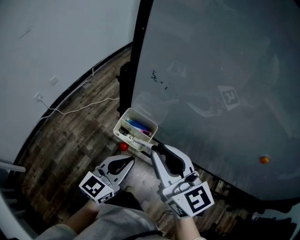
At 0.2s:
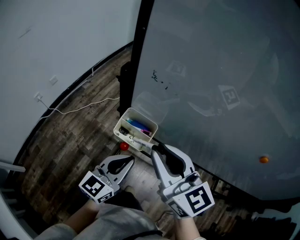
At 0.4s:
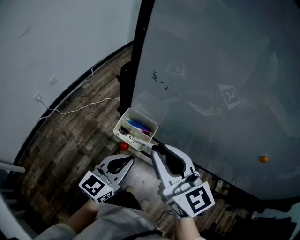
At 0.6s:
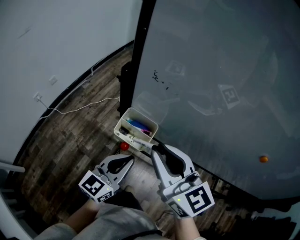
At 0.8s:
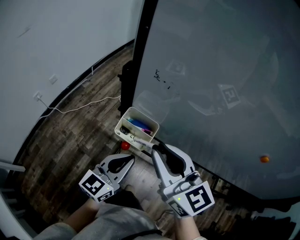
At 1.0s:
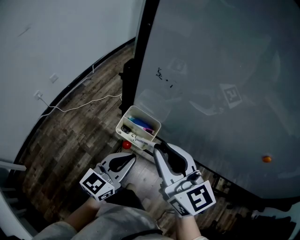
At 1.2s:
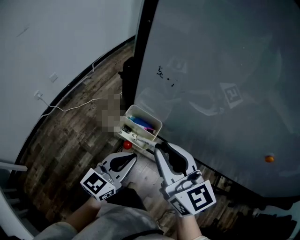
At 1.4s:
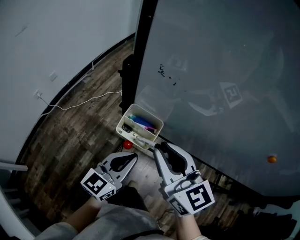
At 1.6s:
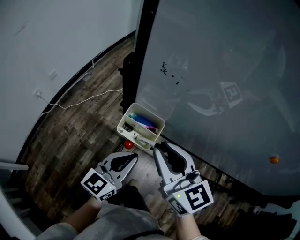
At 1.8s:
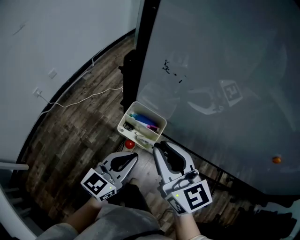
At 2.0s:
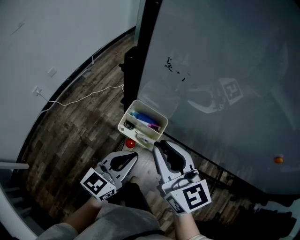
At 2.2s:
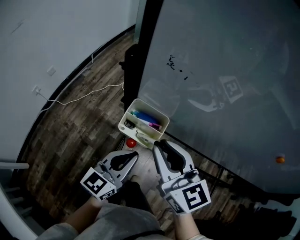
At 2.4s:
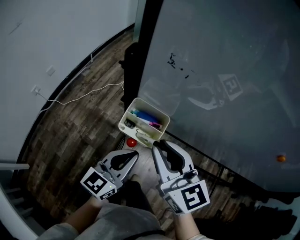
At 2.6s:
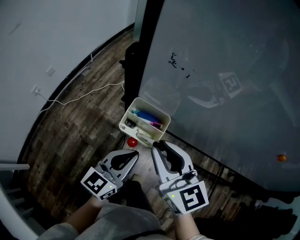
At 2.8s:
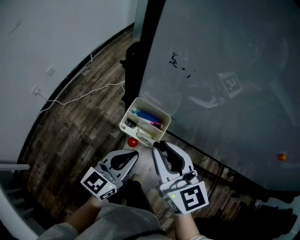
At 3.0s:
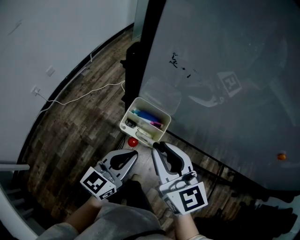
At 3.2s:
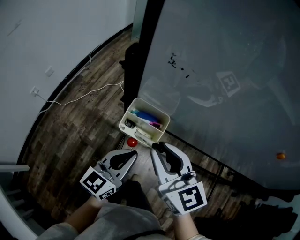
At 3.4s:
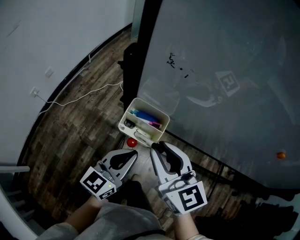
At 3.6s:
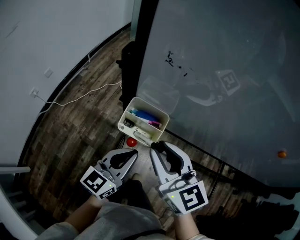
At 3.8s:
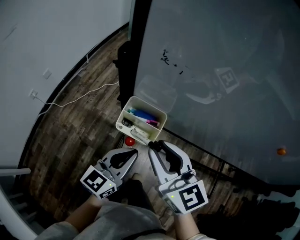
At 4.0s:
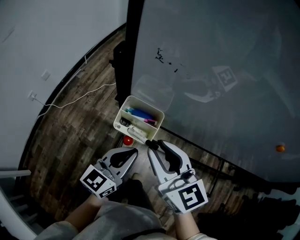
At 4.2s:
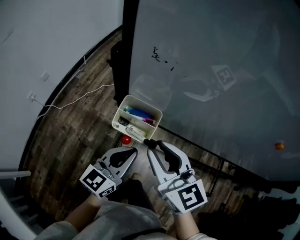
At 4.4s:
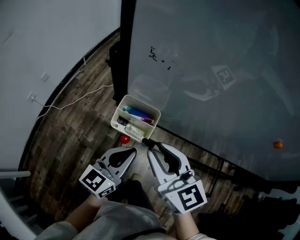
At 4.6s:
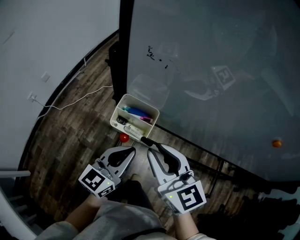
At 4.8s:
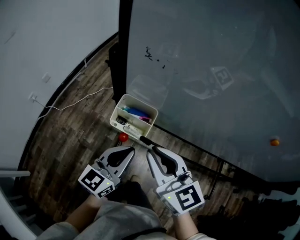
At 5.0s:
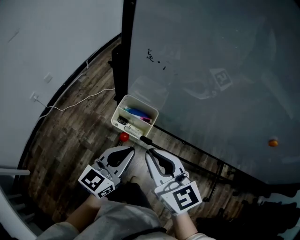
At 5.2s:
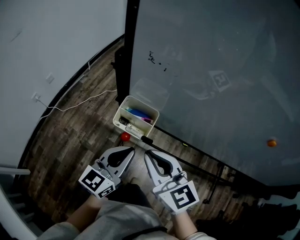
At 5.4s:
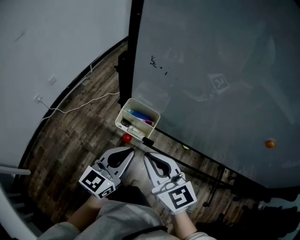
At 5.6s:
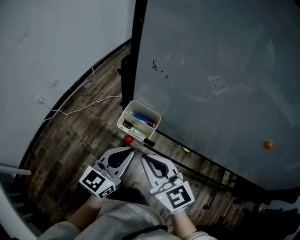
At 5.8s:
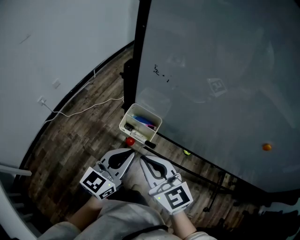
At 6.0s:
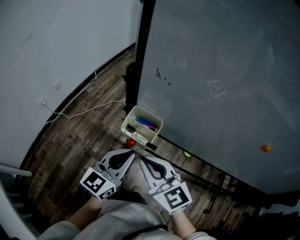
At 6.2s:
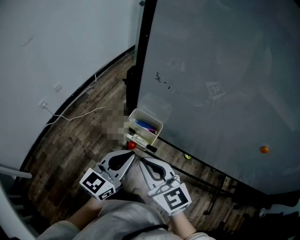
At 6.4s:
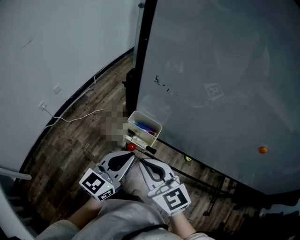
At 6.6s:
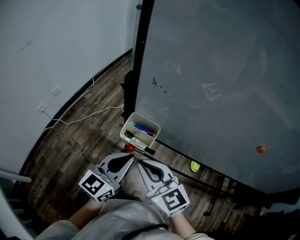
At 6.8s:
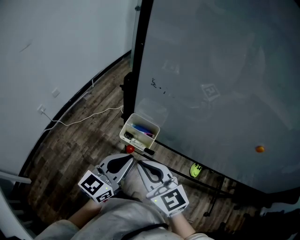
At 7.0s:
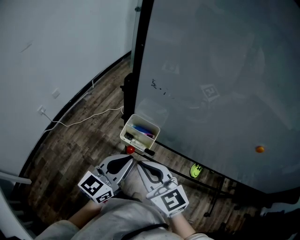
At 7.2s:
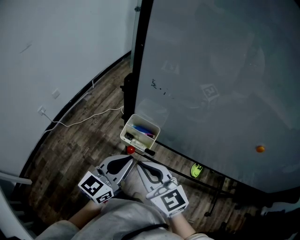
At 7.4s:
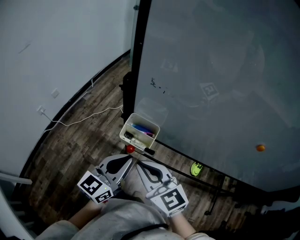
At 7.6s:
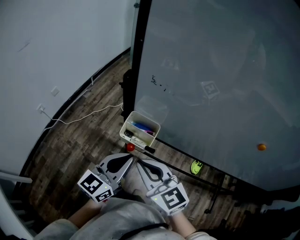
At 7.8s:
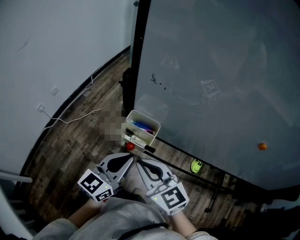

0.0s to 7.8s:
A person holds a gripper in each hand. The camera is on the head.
0.0s to 1.6s: The grippers stay close to where they were, moving slightly.
1.6s to 4.6s: The grippers move only a little.
4.6s to 6.2s: The right gripper ends up some 5 cm from where it was. The left gripper shifts about 5 cm upward.
6.2s to 7.8s: The grippers make only small movements.

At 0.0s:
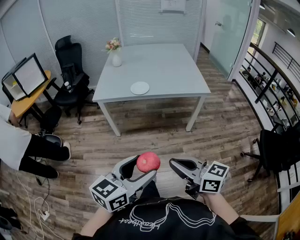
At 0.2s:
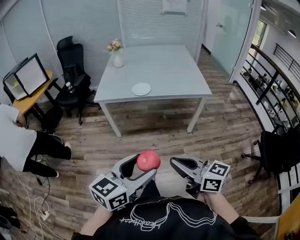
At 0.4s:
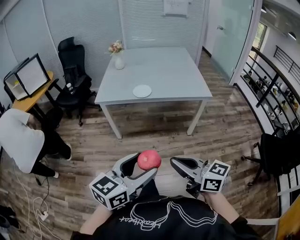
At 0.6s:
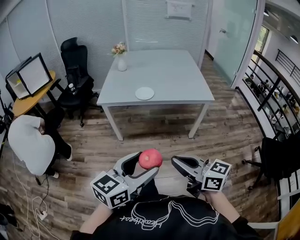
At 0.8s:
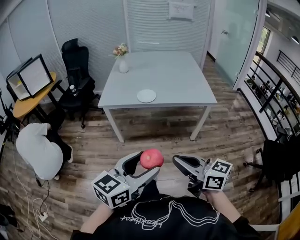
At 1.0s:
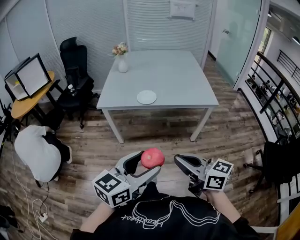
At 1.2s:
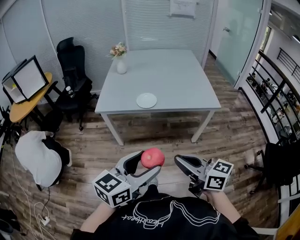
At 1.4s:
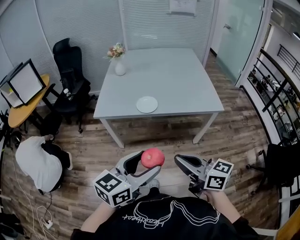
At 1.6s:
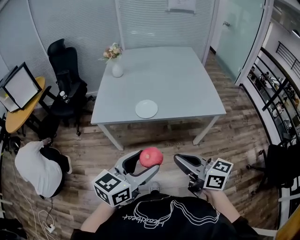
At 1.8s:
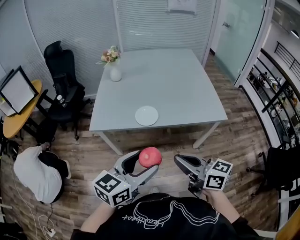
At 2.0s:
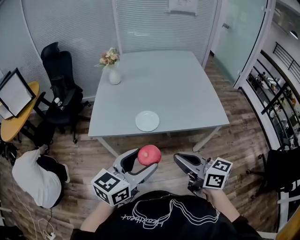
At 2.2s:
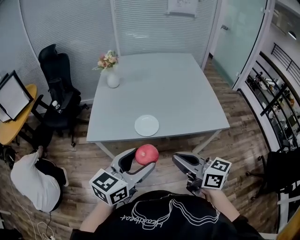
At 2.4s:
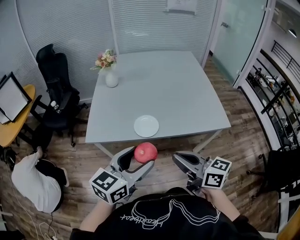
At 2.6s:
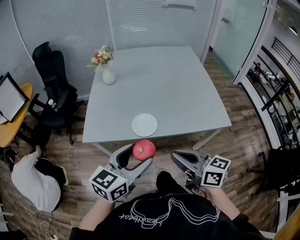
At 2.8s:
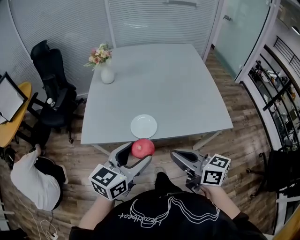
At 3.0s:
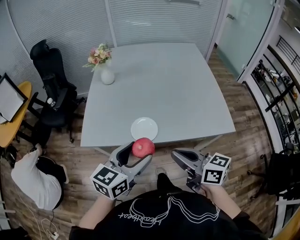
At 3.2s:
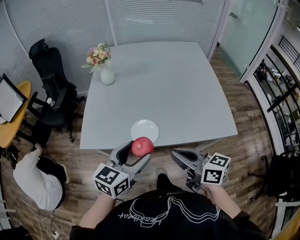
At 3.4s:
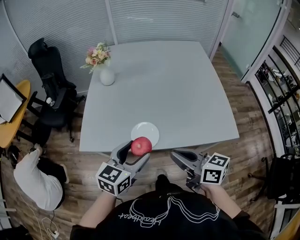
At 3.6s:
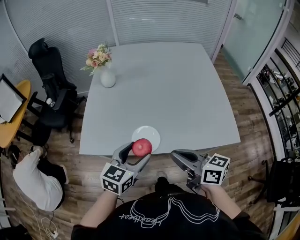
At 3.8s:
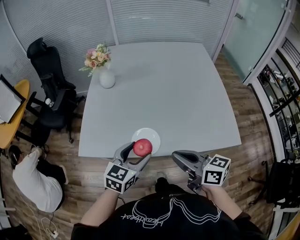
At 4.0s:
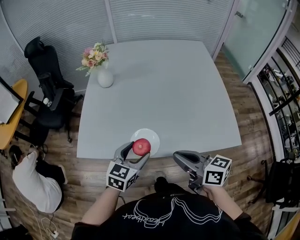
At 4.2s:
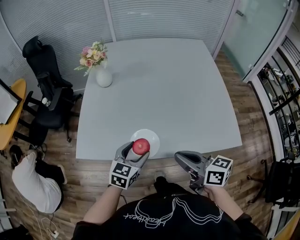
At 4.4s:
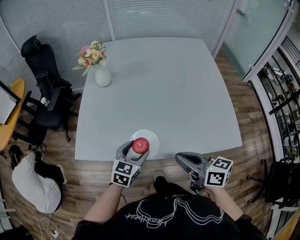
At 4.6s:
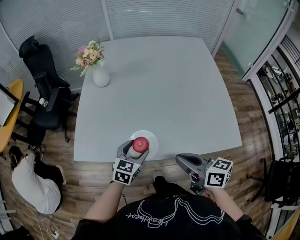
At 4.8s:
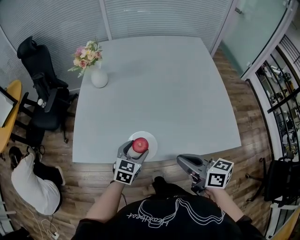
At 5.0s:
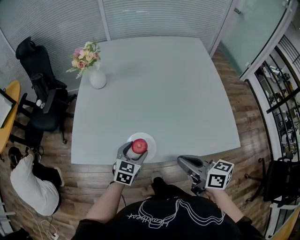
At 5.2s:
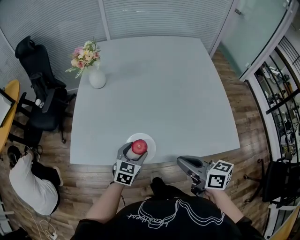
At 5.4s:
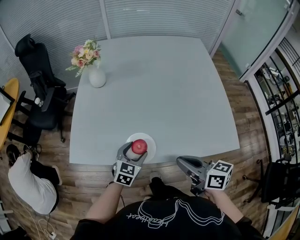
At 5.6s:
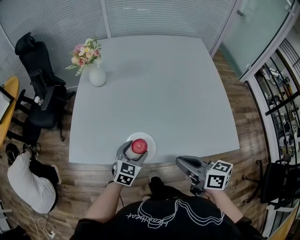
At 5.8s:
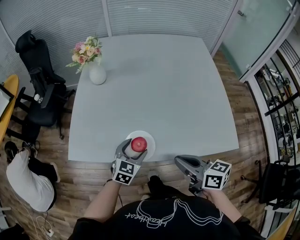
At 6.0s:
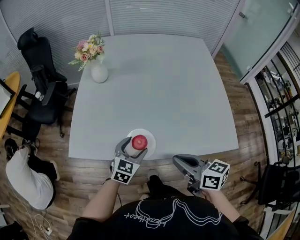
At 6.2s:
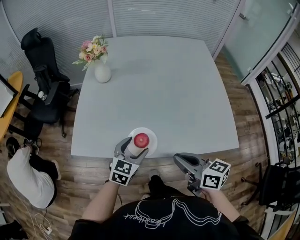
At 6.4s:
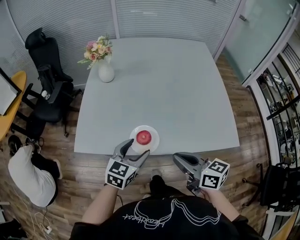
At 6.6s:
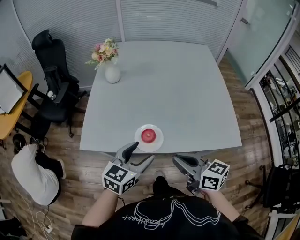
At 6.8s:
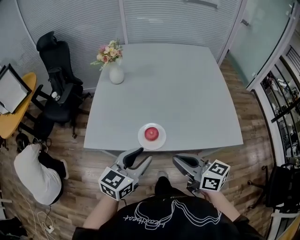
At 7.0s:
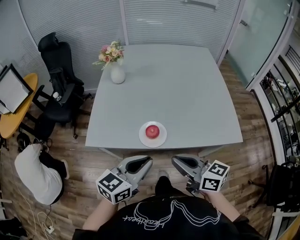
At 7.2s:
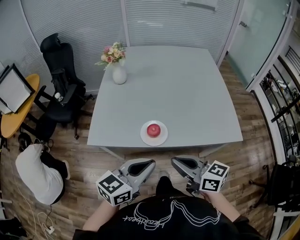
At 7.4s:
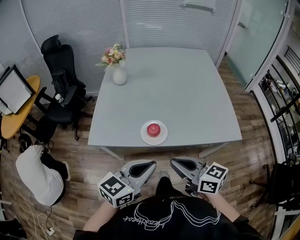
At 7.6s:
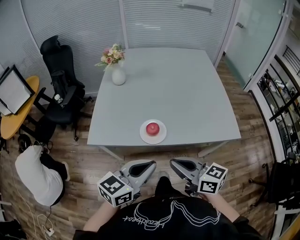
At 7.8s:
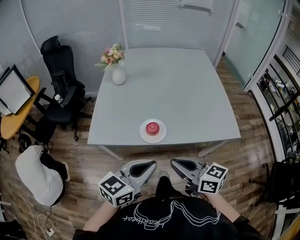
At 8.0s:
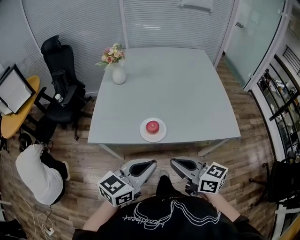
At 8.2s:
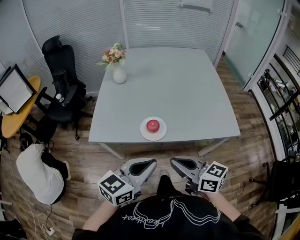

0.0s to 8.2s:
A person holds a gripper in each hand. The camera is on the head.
0.0s to 1.6s: The two grippers go roughly 25 cm forward.
1.6s to 3.2s: The grippers both shift forward by some 25 cm.
3.2s to 5.0s: The left gripper is displaced downward and forward by roughly 25 cm, and turns by about 20 degrees. The right gripper shifts roughly 10 cm forward, downward and to the right.
5.0s to 6.6s: The right gripper goes roughly 5 cm to the left. The left gripper is displaced upward and backward by some 15 cm.
6.6s to 8.2s: The left gripper heads backward and upward, covering roughly 15 cm, and closes up, while the right gripper goes about 10 cm backward.

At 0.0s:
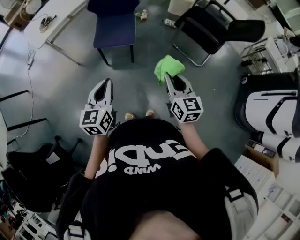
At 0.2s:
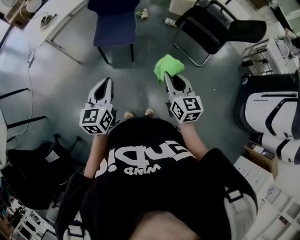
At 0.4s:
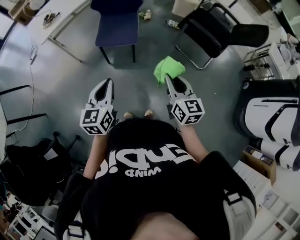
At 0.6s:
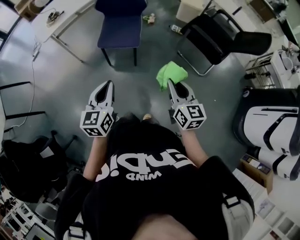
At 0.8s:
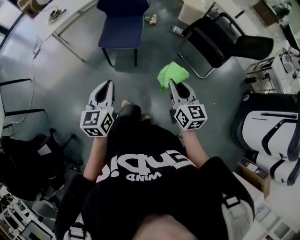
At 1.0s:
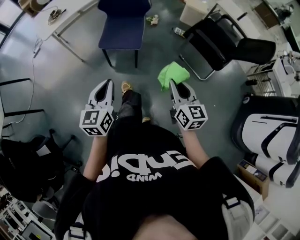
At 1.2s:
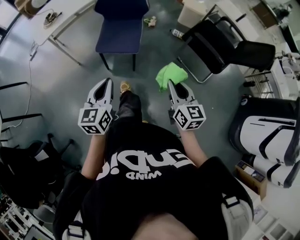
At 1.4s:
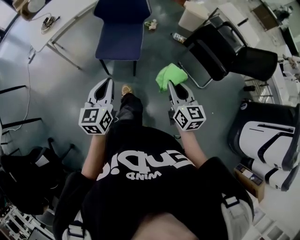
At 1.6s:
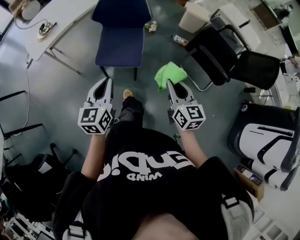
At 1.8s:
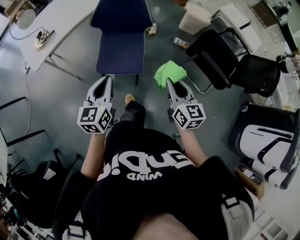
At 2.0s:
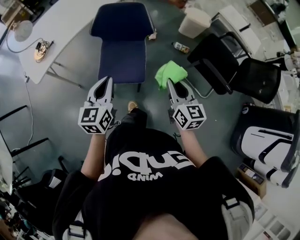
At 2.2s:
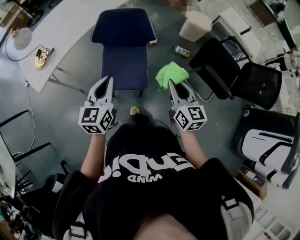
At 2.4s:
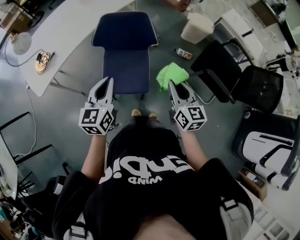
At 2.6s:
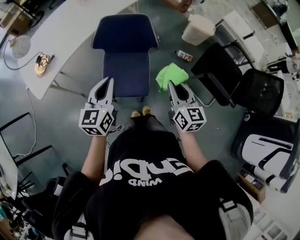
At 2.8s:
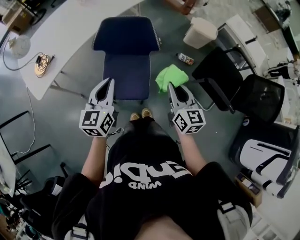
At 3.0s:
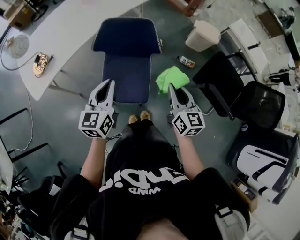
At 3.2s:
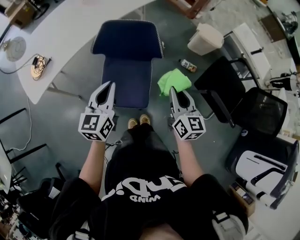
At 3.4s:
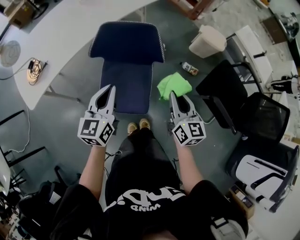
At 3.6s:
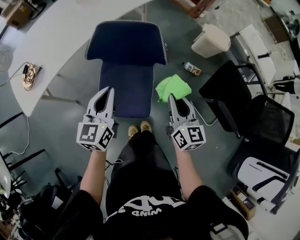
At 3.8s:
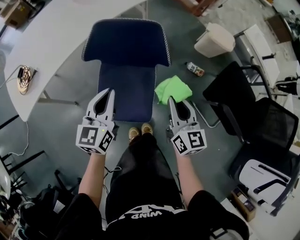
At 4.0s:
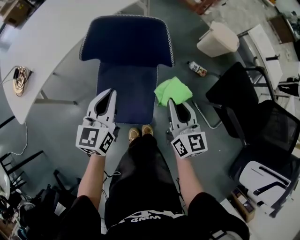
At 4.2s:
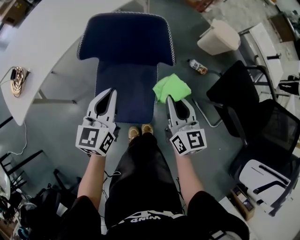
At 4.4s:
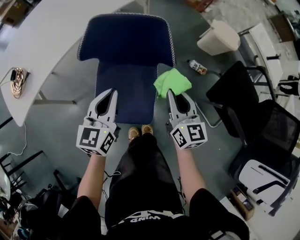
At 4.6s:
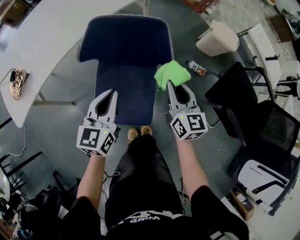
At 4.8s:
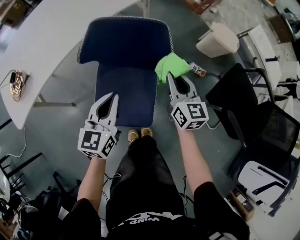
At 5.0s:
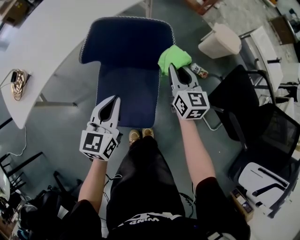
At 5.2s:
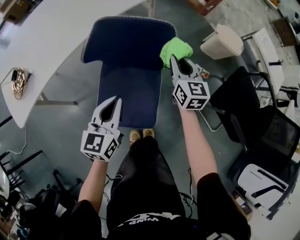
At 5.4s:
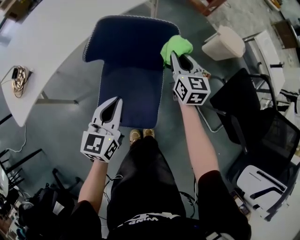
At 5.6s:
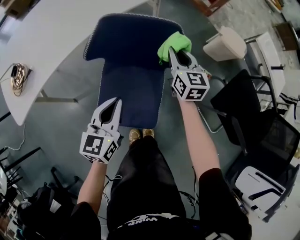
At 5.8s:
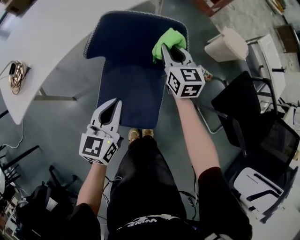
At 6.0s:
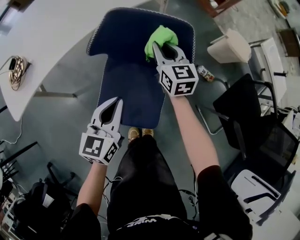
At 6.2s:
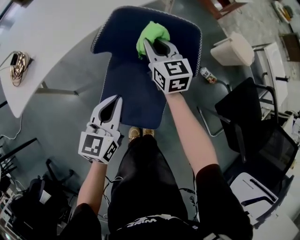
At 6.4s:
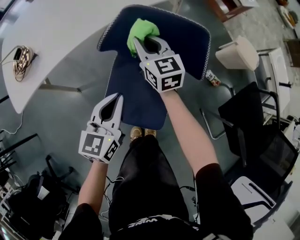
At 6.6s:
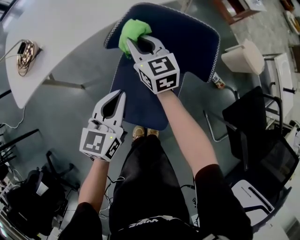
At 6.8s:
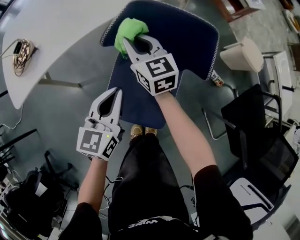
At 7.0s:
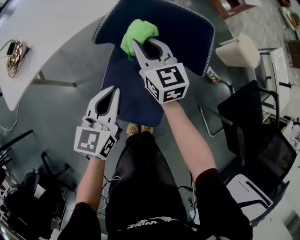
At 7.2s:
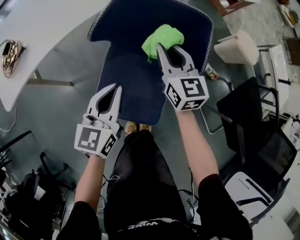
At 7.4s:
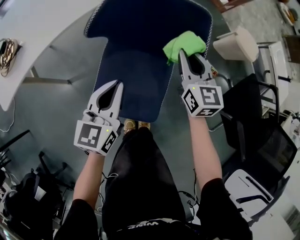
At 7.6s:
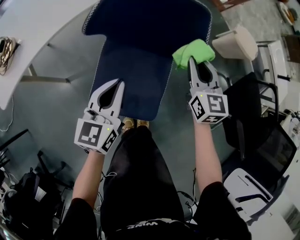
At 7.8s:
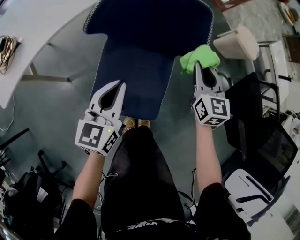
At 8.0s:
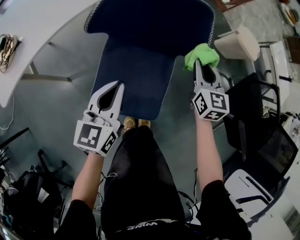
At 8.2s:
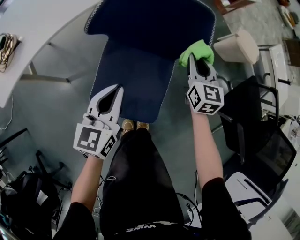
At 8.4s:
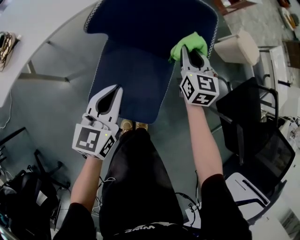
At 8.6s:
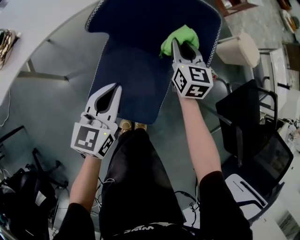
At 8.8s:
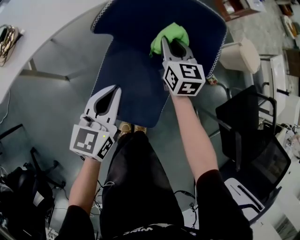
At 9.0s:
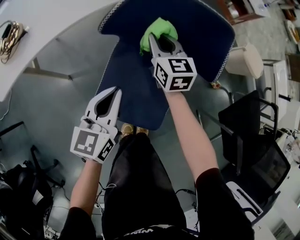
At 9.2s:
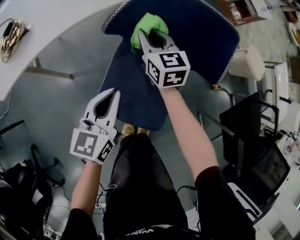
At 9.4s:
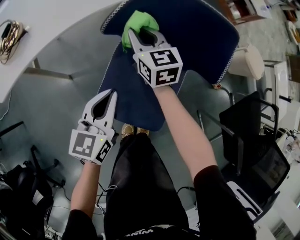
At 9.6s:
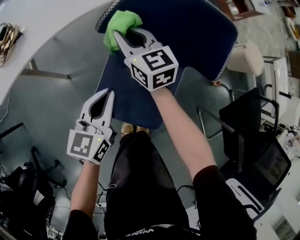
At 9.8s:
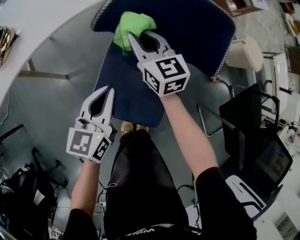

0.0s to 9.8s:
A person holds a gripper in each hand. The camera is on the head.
0.0s to 1.4s: The grippers both shift forward by approximately 15 cm.
1.4s to 2.8s: The grippers both shift forward by roughly 35 cm.
2.8s to 4.2s: The two grippers go approximately 20 cm downward and forward.
4.2s to 5.6s: The right gripper heads forward, covering approximately 20 cm.
5.6s to 7.0s: The right gripper is displaced to the left by about 20 cm, and rotates approximately 20 degrees, while the left gripper shifts by approximately 5 cm.
7.0s to 8.4s: The left gripper changes place by some 5 cm. Meanwhile the right gripper heads to the right and downward, covering roughly 20 cm, and turns by approximately 20 degrees.
8.4s to 9.8s: The left gripper shifts roughly 5 cm to the left; the right gripper shifts roughly 20 cm to the left, and swivels roughly 30 degrees.
